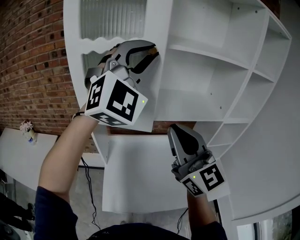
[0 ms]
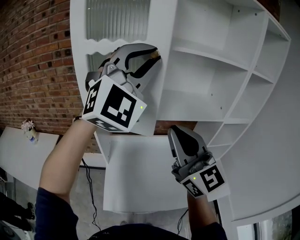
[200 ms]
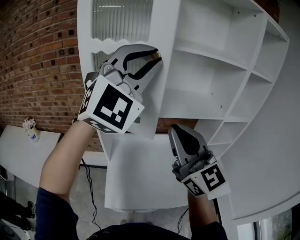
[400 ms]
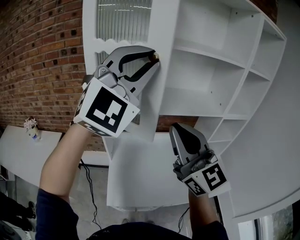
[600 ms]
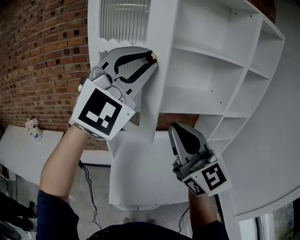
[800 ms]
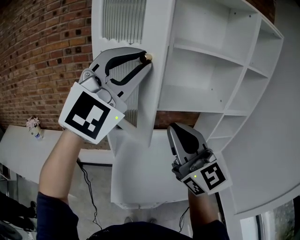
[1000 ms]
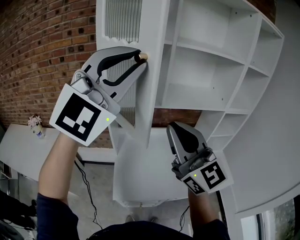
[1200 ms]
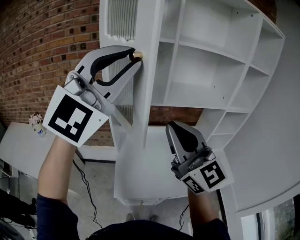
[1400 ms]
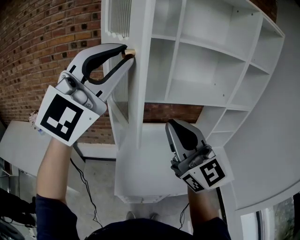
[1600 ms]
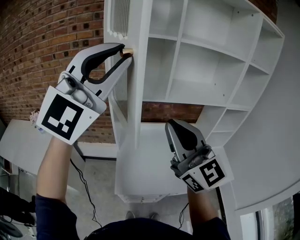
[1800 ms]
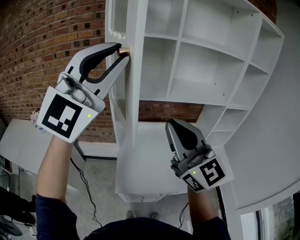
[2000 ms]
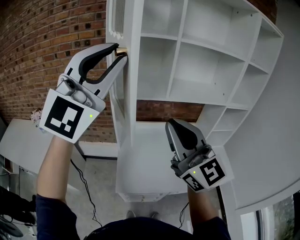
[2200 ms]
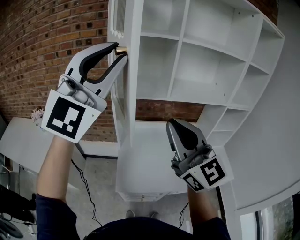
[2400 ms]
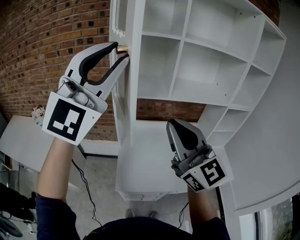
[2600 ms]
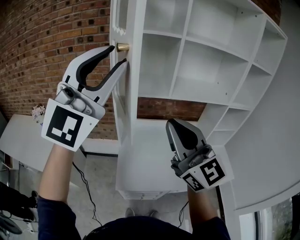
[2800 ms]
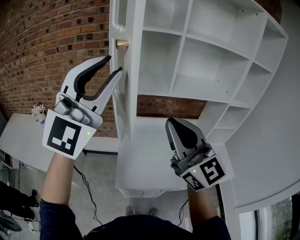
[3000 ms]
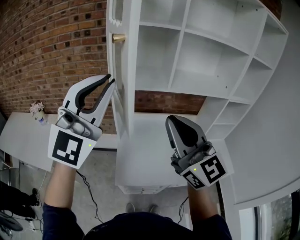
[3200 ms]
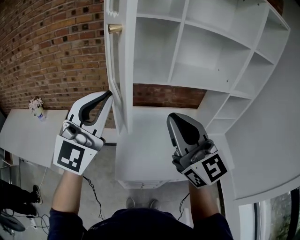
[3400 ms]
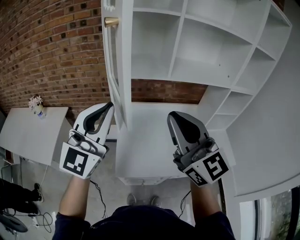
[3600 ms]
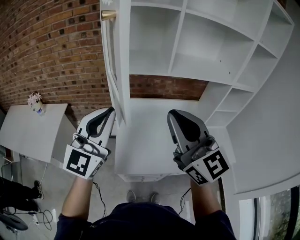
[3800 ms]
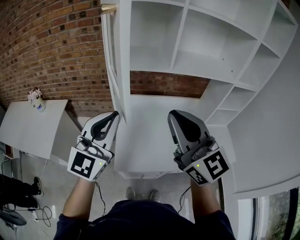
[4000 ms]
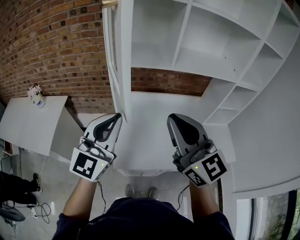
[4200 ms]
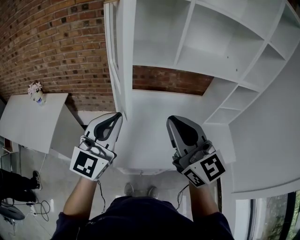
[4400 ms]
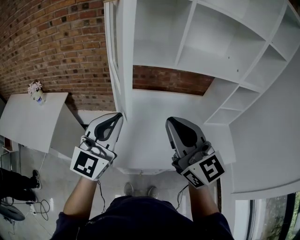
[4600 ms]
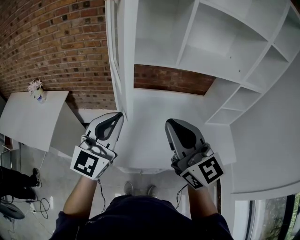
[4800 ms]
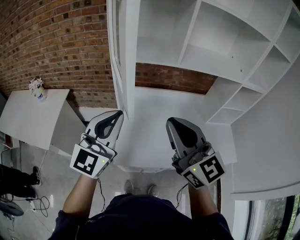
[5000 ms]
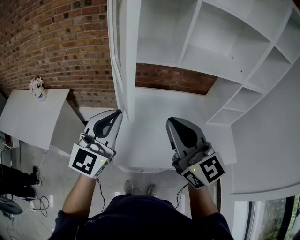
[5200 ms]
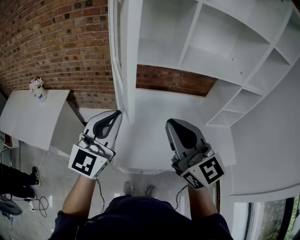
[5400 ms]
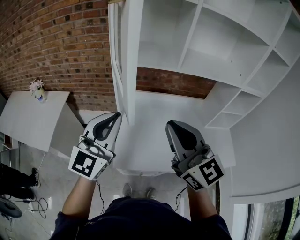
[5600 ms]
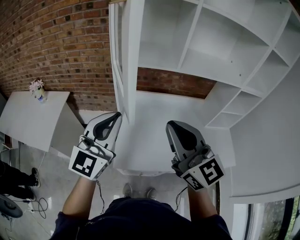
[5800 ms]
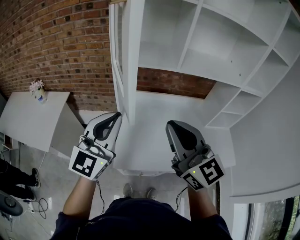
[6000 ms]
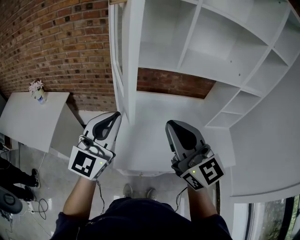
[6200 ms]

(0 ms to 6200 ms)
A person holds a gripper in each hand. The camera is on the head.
0 ms - 1600 ms: The right gripper shifts about 15 cm backward and to the left. The left gripper is displaced backward and to the left by approximately 25 cm, and swivels approximately 20 degrees.
1600 ms - 3200 ms: The left gripper travels downward by approximately 10 cm.
3200 ms - 4600 ms: The left gripper moves downward, approximately 20 cm, and swivels approximately 30 degrees. The right gripper moves downward, roughly 10 cm.
4600 ms - 6200 ms: Both grippers stay put.

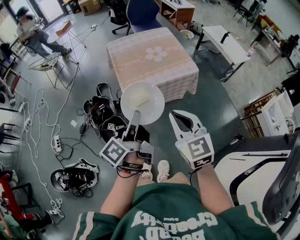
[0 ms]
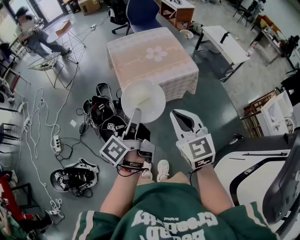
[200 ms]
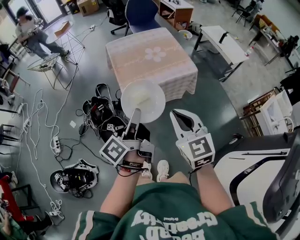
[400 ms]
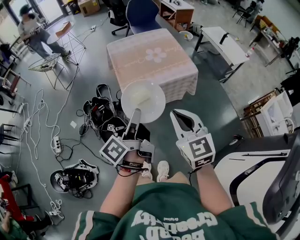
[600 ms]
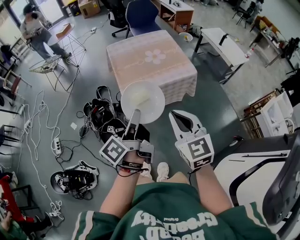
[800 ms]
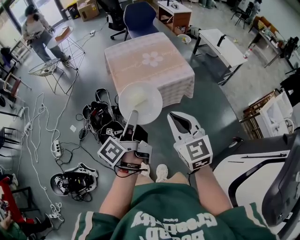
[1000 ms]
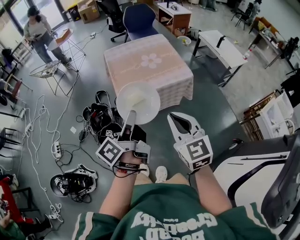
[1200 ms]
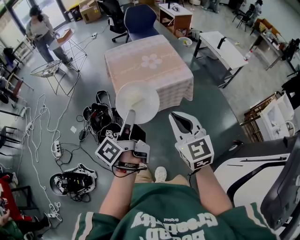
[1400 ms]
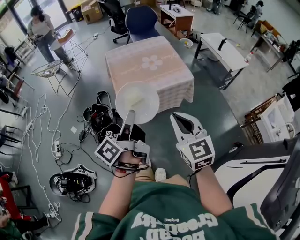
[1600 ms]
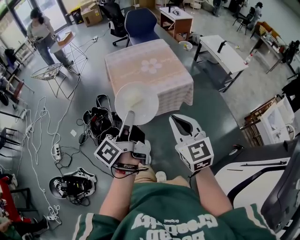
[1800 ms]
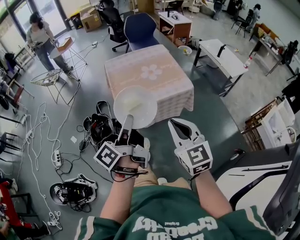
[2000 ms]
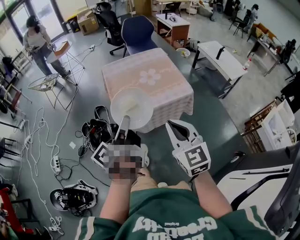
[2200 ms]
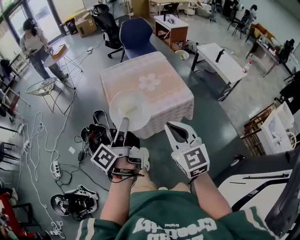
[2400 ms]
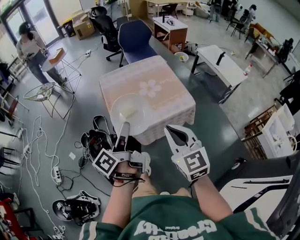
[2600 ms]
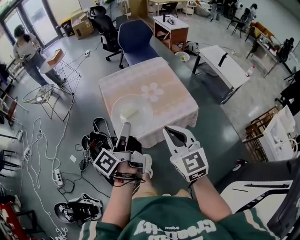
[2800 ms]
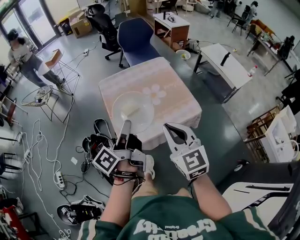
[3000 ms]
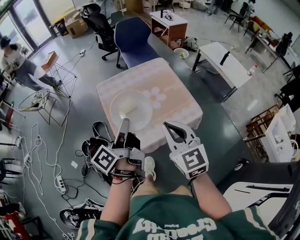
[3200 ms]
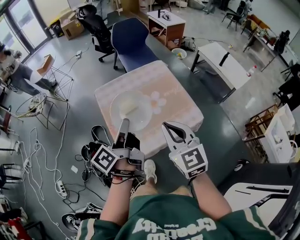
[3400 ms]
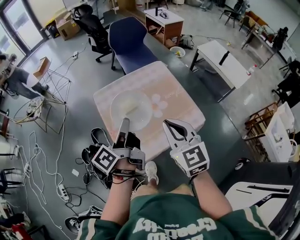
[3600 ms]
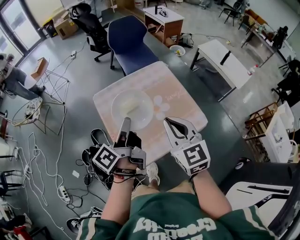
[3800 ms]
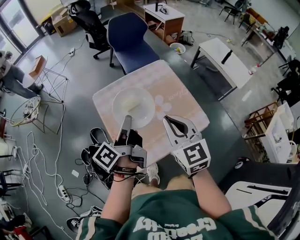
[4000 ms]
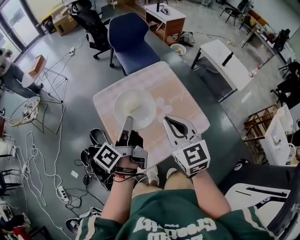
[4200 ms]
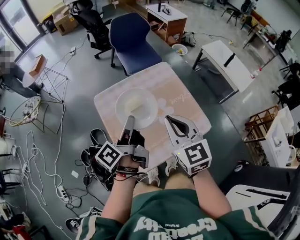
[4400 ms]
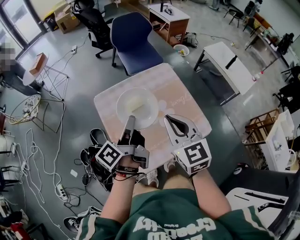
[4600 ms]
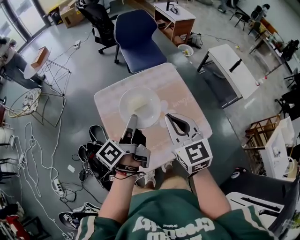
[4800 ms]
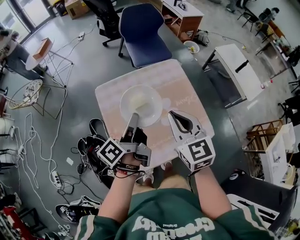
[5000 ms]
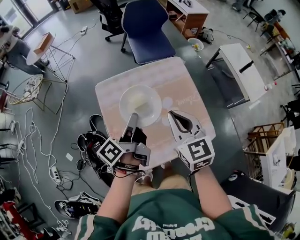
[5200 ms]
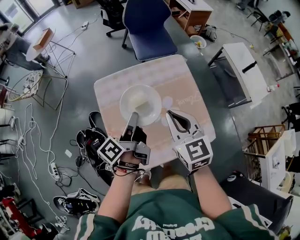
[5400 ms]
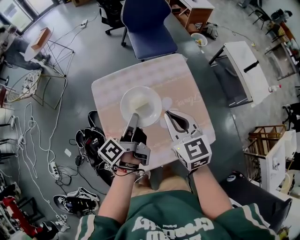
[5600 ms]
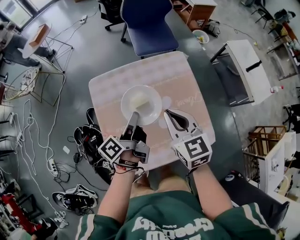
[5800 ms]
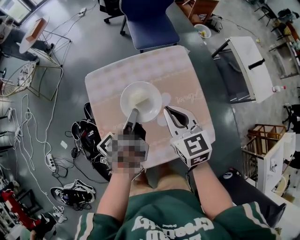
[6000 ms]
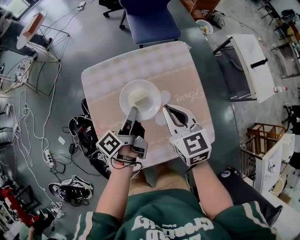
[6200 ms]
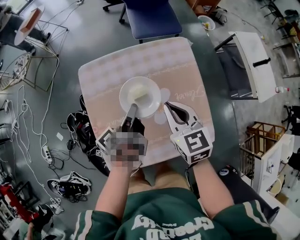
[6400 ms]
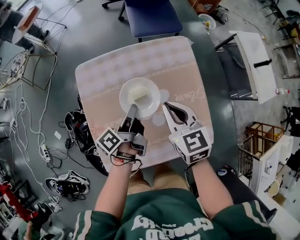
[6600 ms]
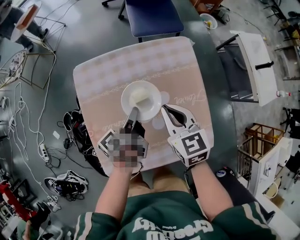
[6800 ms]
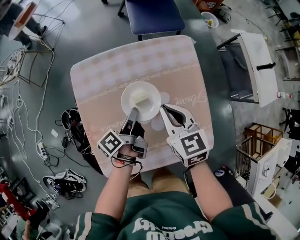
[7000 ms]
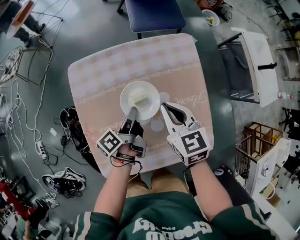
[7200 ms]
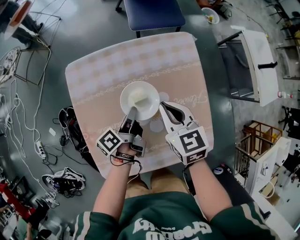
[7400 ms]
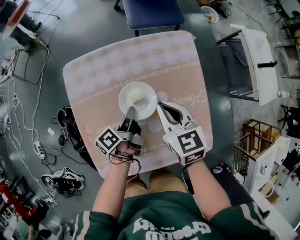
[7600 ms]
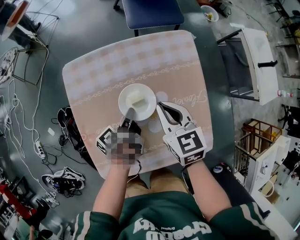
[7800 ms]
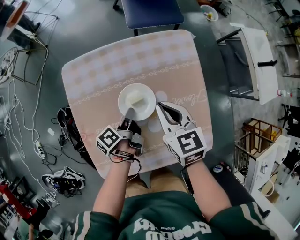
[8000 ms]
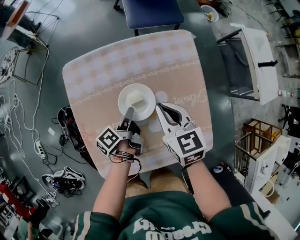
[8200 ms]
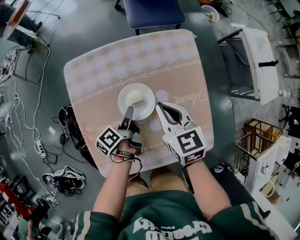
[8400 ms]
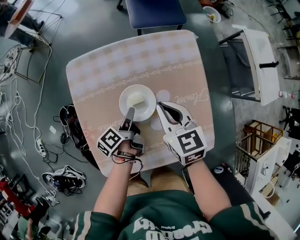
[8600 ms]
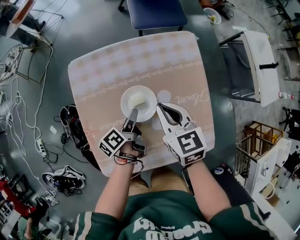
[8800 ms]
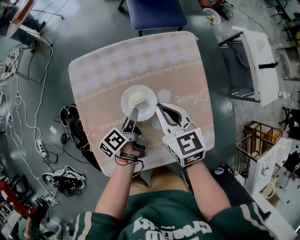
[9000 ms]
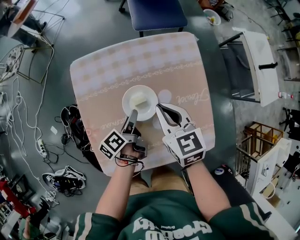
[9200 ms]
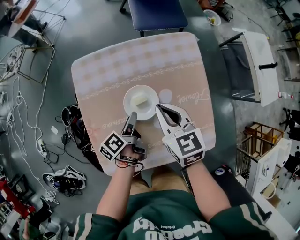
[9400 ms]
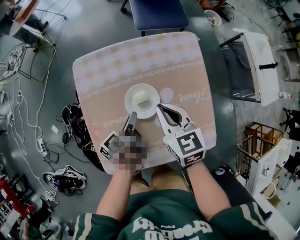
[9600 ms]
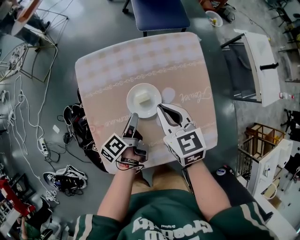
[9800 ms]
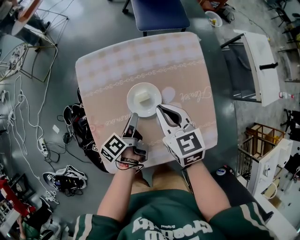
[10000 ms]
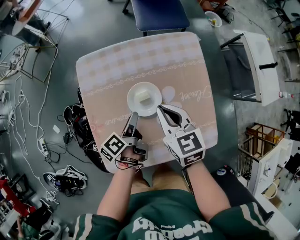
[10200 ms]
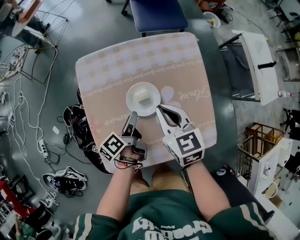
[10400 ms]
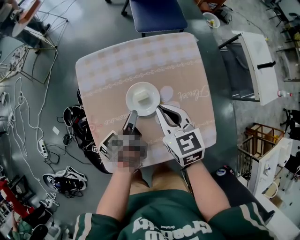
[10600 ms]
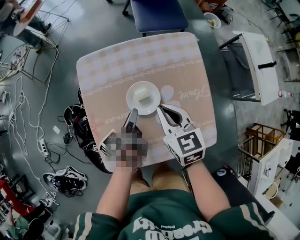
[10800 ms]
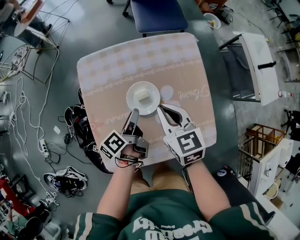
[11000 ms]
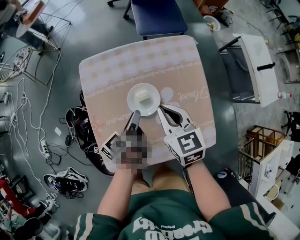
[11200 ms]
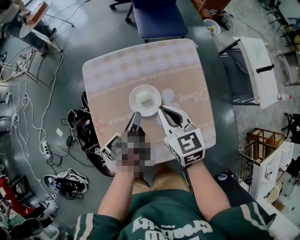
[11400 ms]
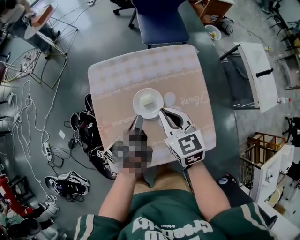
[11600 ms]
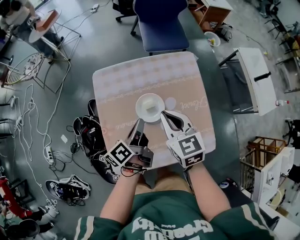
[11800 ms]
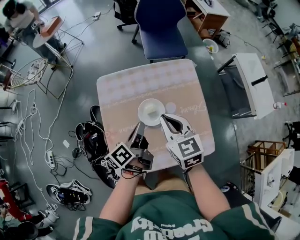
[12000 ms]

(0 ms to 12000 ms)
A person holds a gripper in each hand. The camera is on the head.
0 ms - 1600 ms: The right gripper moves approximately 5 cm.
1600 ms - 3000 ms: The right gripper shifts by some 25 cm.
3000 ms - 4400 ms: The right gripper shifts by approximately 20 cm.
4400 ms - 6000 ms: The right gripper goes some 10 cm downward.
6000 ms - 7600 ms: The right gripper shifts roughly 10 cm downward.
10400 ms - 12000 ms: The right gripper heads upward, covering some 10 cm.

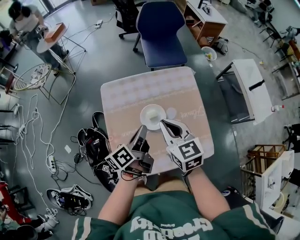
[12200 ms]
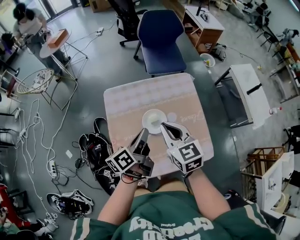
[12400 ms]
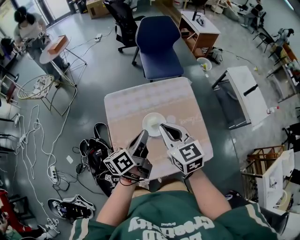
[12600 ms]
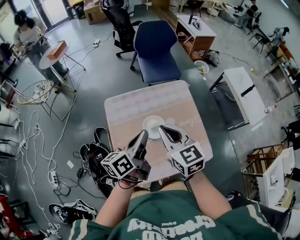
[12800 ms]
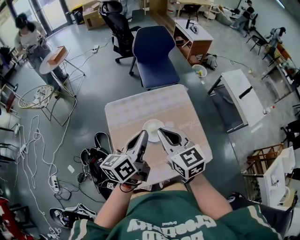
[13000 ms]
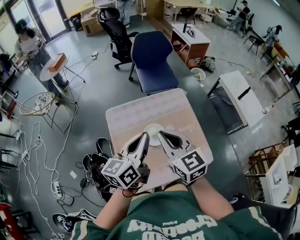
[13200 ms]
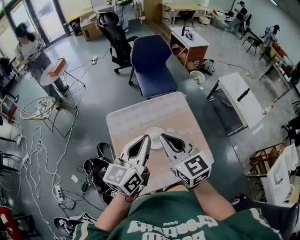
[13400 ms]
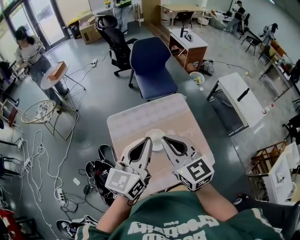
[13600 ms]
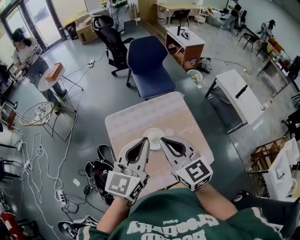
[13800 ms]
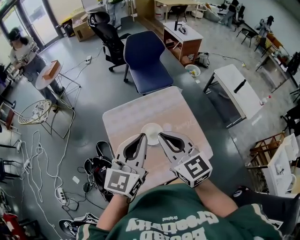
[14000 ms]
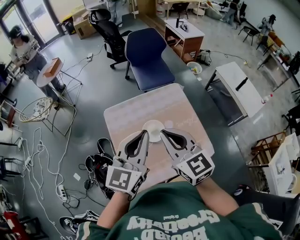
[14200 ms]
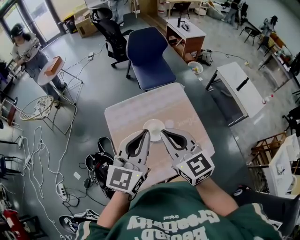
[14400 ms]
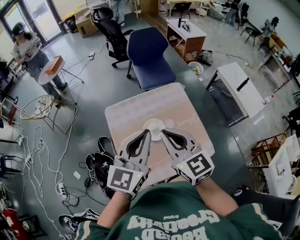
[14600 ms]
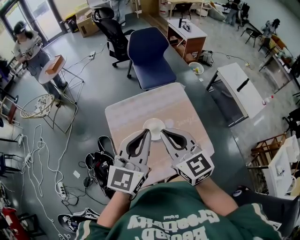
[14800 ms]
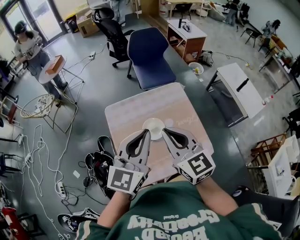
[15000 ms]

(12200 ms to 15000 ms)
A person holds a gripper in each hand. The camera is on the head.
12200 ms - 13600 ms: The right gripper is displaced upward by roughly 15 cm.

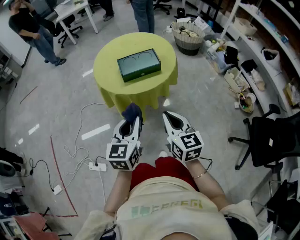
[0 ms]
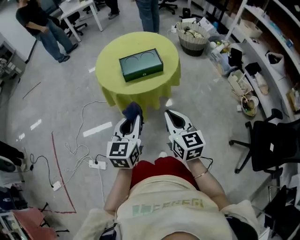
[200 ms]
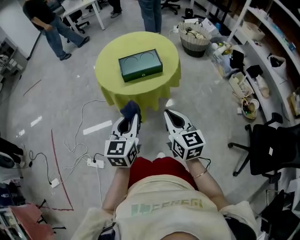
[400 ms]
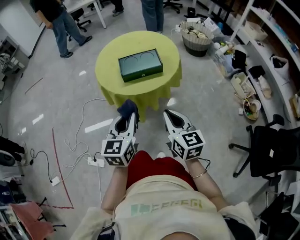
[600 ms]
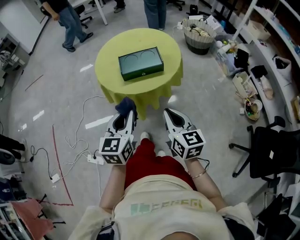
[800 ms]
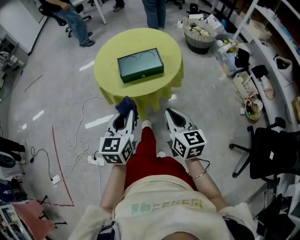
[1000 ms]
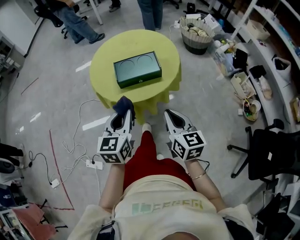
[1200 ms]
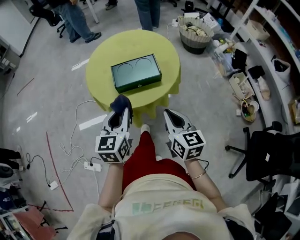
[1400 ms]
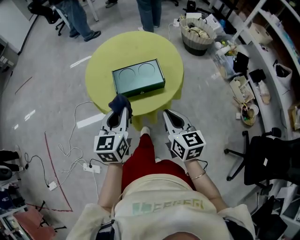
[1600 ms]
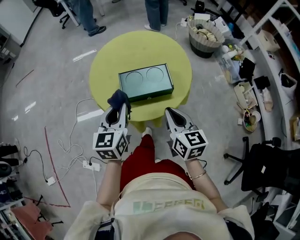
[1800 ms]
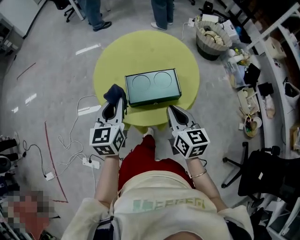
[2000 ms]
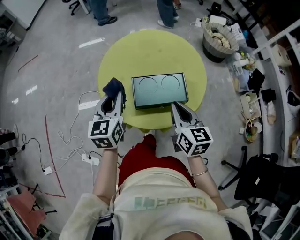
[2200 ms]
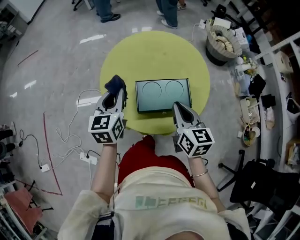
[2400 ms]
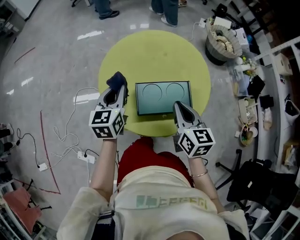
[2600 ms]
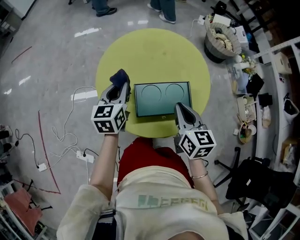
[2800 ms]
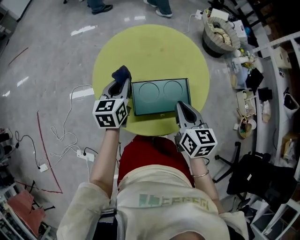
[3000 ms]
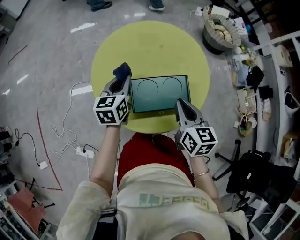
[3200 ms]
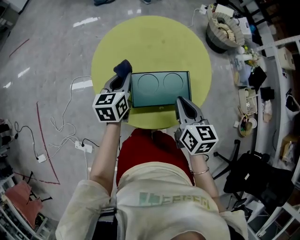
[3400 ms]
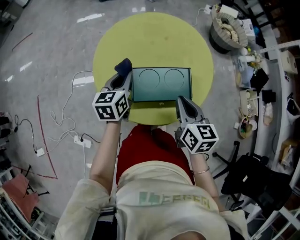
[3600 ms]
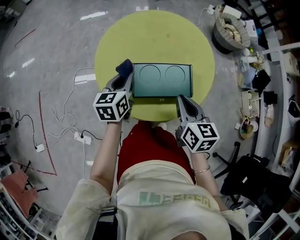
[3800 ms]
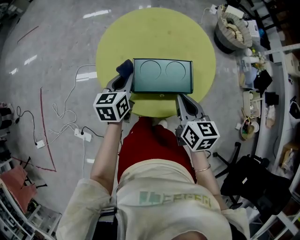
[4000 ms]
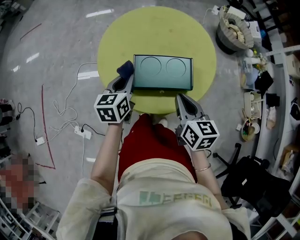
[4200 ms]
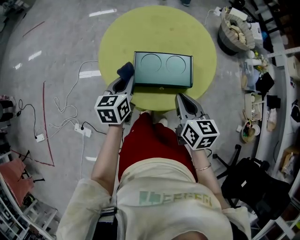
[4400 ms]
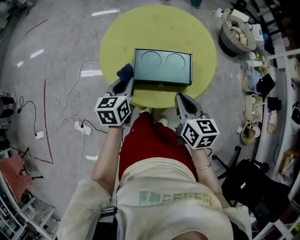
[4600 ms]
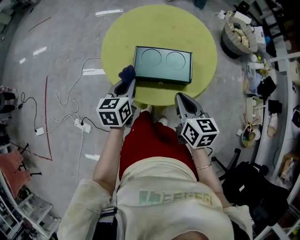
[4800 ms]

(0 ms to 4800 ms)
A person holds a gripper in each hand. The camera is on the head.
0 ms - 1600 ms: The two grippers go roughly 25 cm forward.
1600 ms - 3200 ms: The grippers both shift forward by about 25 cm.
3200 ms - 4800 ms: The right gripper is displaced backward by approximately 10 cm. The left gripper is displaced backward by some 20 cm.
